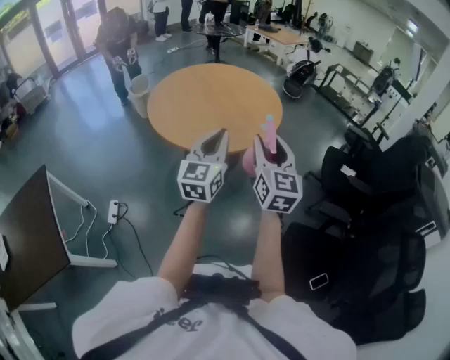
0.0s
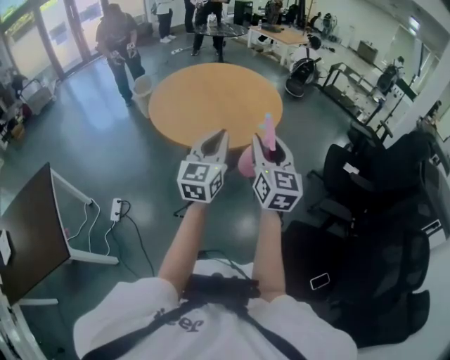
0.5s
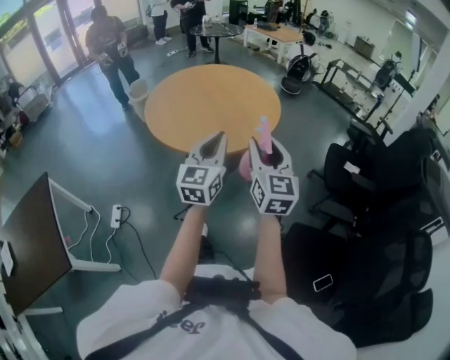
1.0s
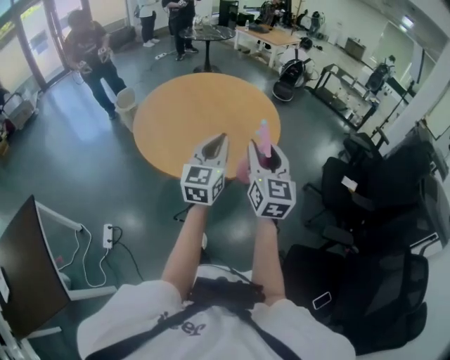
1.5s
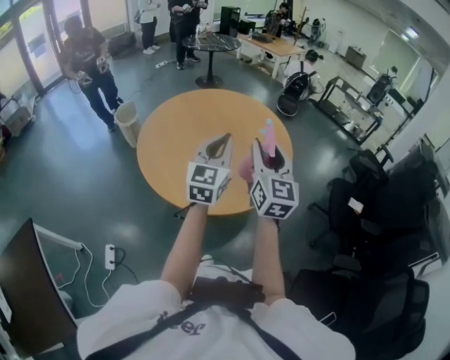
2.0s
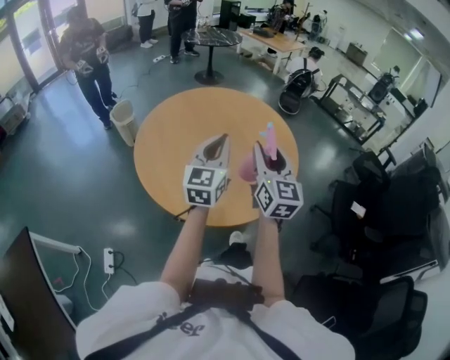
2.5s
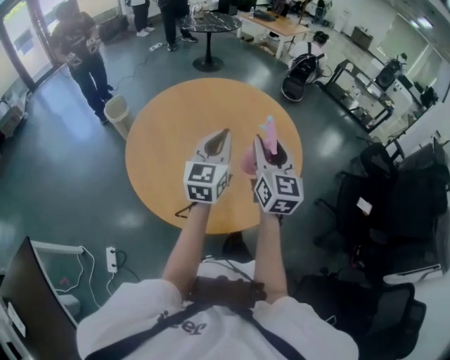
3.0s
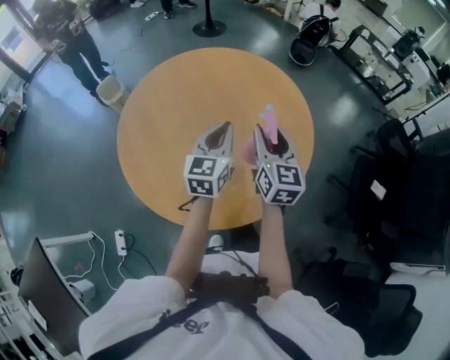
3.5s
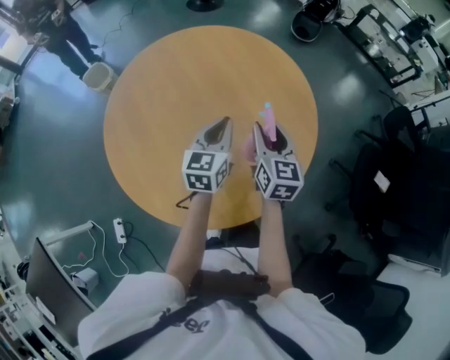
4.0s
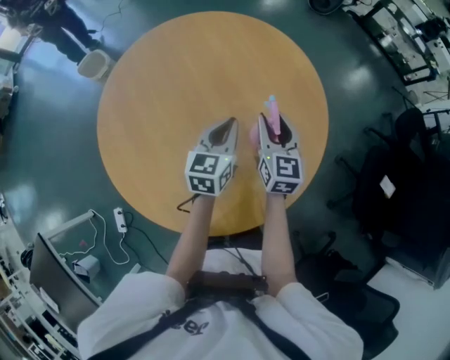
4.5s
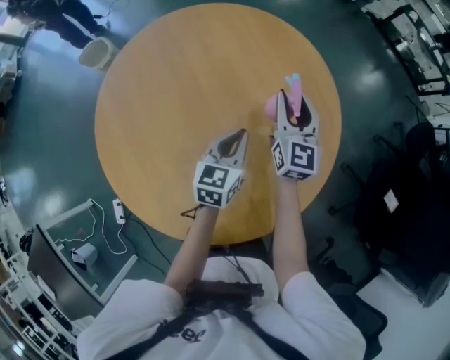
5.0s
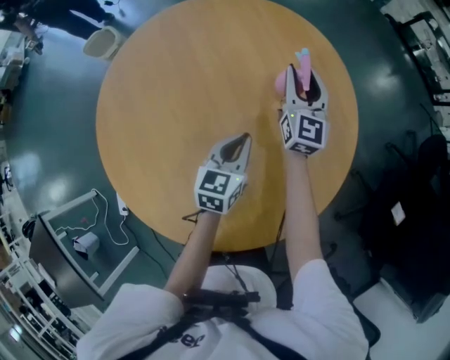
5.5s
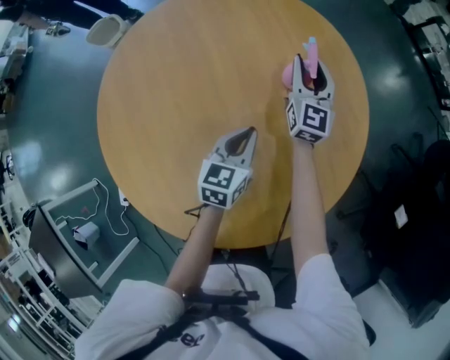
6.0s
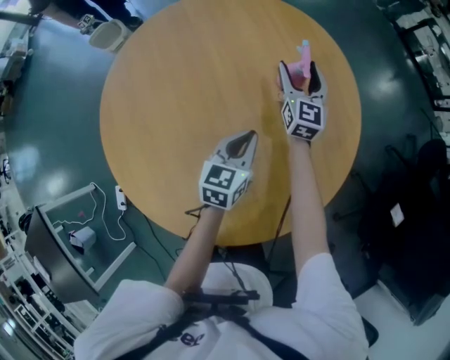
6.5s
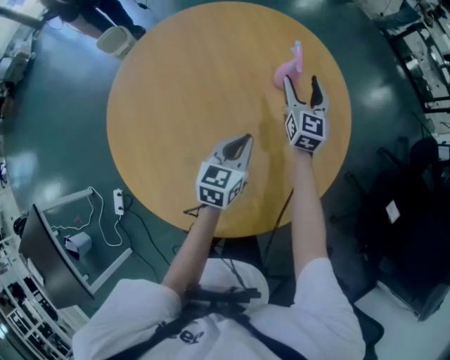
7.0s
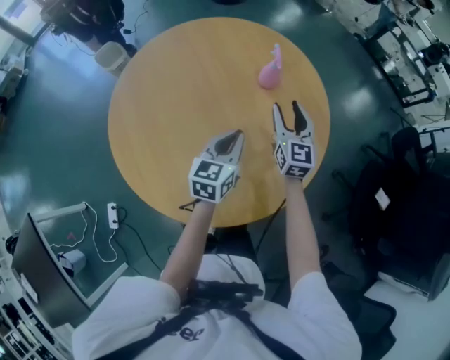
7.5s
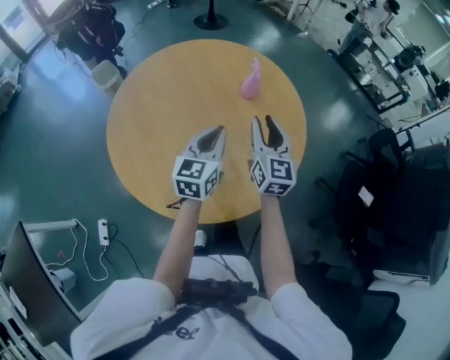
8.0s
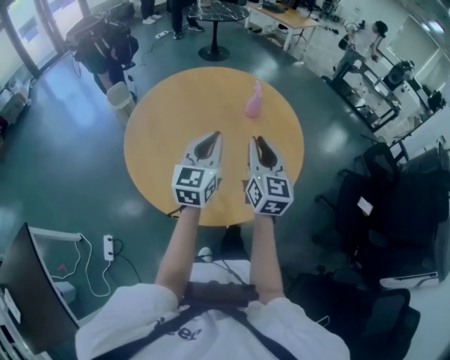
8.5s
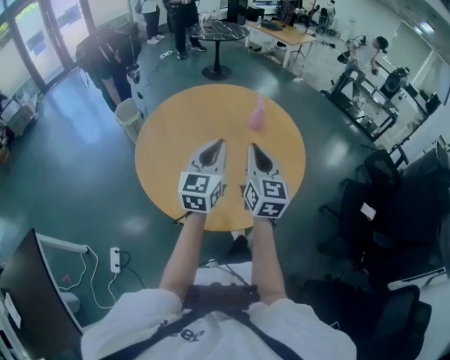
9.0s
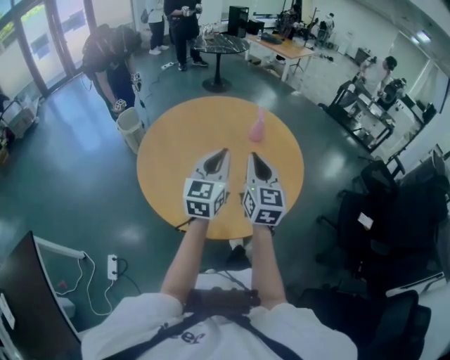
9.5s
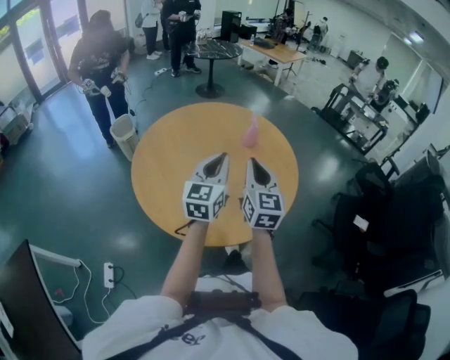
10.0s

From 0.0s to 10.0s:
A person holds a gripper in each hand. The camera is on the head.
From 0.0s to 2.0s: Both grippers travel together forward, approximately 30 cm.
From 2.0s to 4.0s: The two grippers go approximately 35 cm forward and downward. The right gripper changes its angle by roughly 30 degrees, while the left gripper rotates some 30 degrees.
From 4.0s to 6.0s: The left gripper moves downward and forward, approximately 15 cm; the right gripper heads forward, covering approximately 30 cm.
From 6.0s to 8.0s: The left gripper is displaced upward and backward by roughly 25 cm, and rotates some 20 degrees. The right gripper moves backward and upward, about 35 cm, and opens and closes again.
From 8.0s to 10.0s: The right gripper goes approximately 20 cm backward, upward and to the left, and closes up; the left gripper is displaced upward and backward by roughly 15 cm.

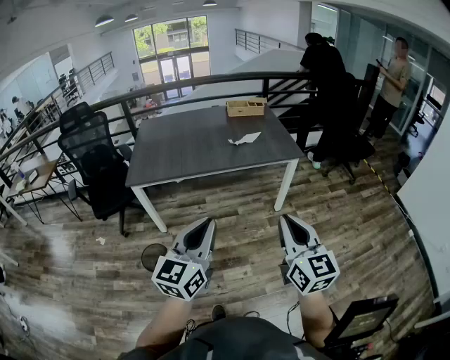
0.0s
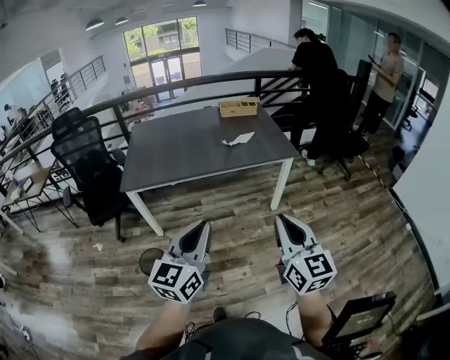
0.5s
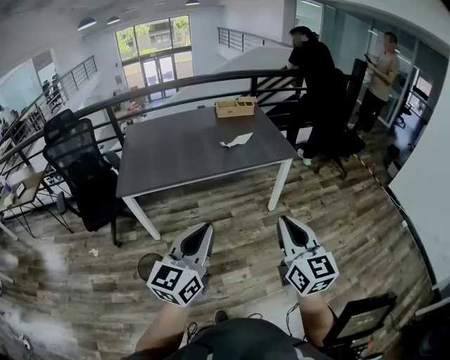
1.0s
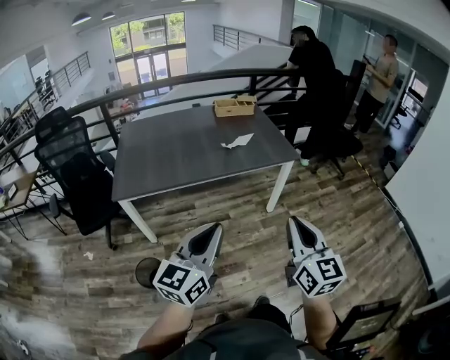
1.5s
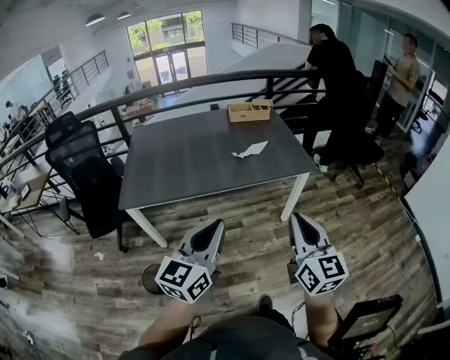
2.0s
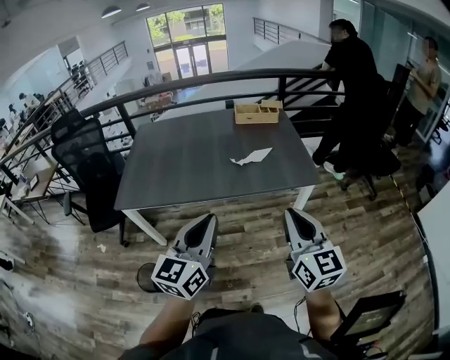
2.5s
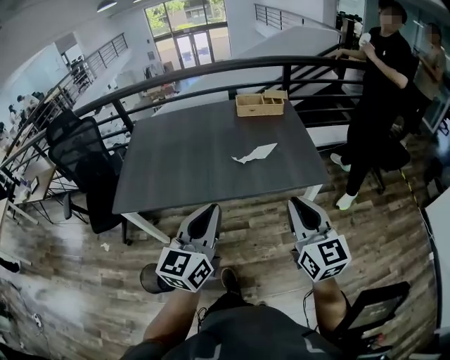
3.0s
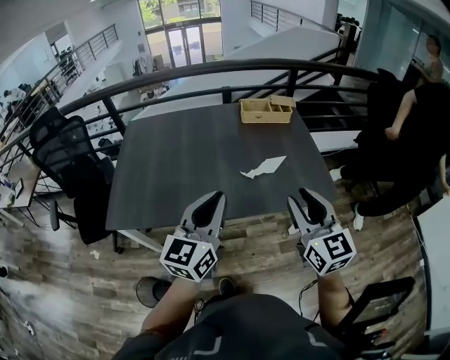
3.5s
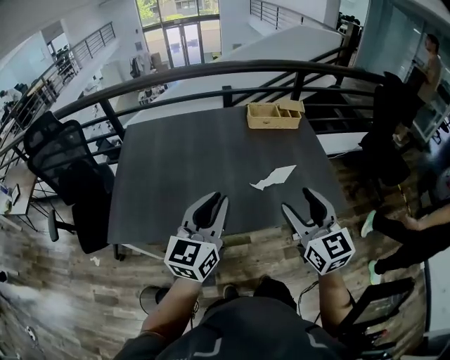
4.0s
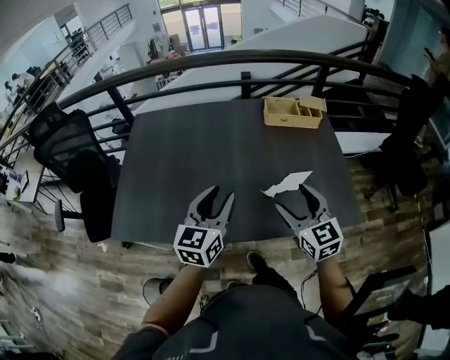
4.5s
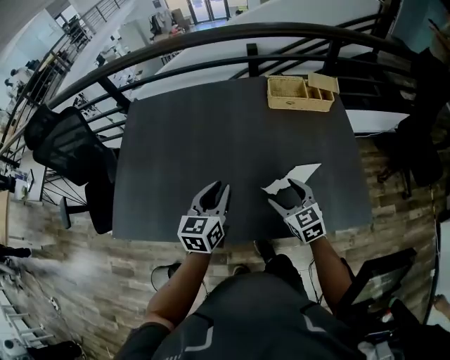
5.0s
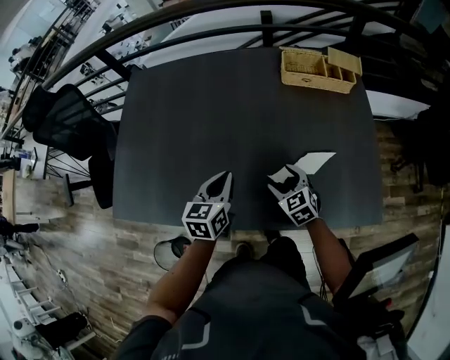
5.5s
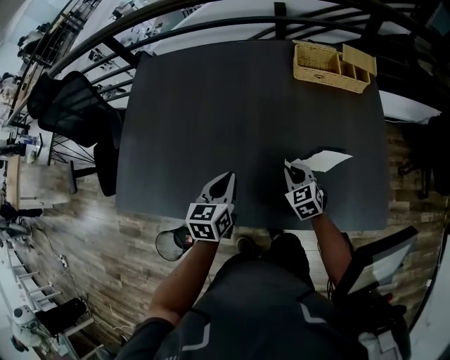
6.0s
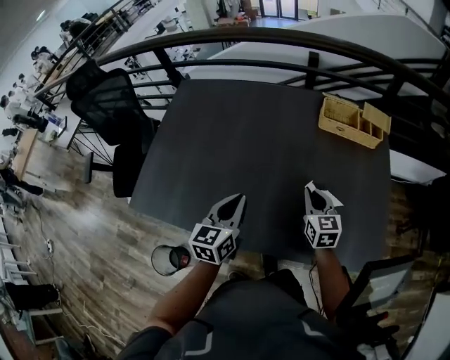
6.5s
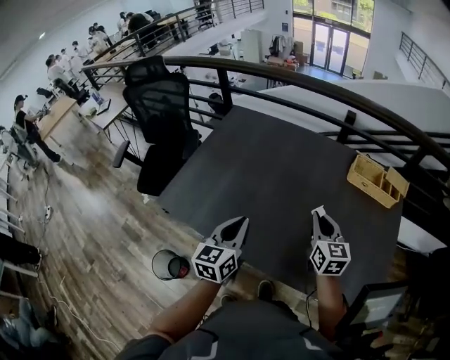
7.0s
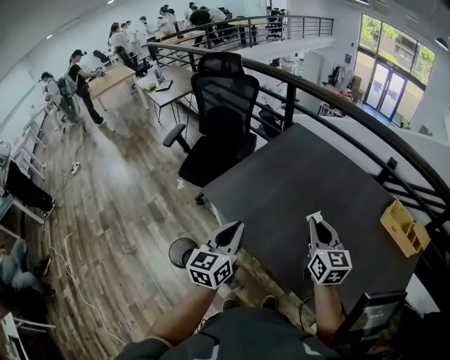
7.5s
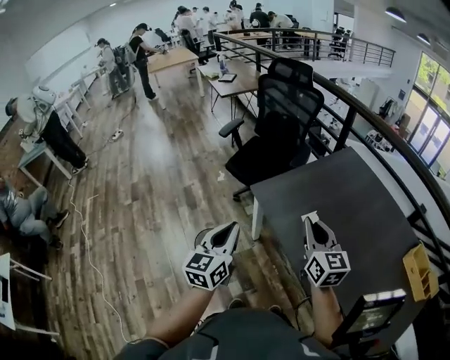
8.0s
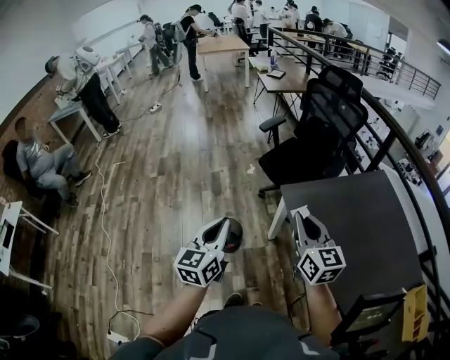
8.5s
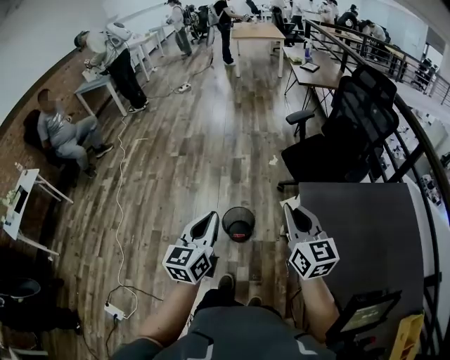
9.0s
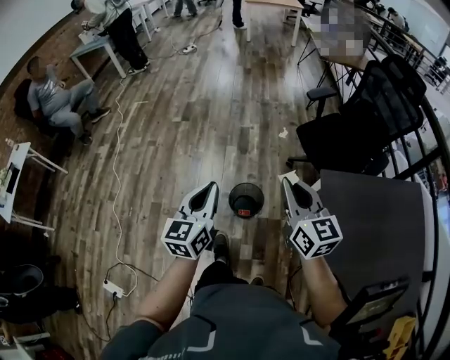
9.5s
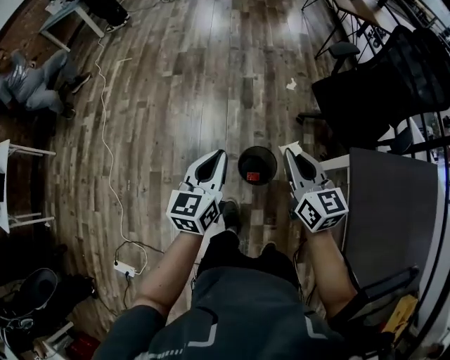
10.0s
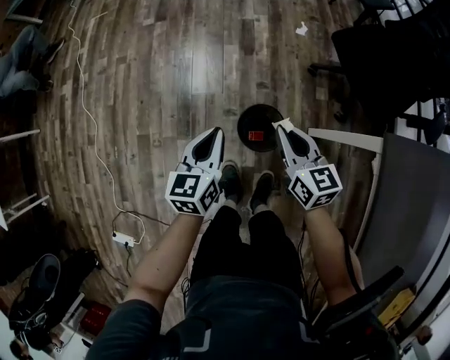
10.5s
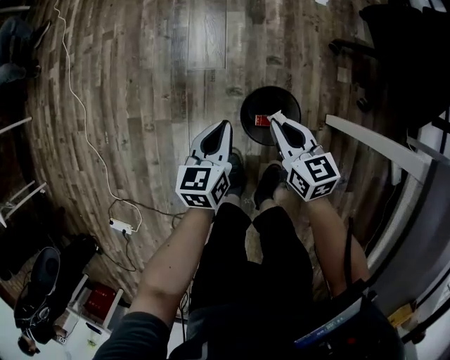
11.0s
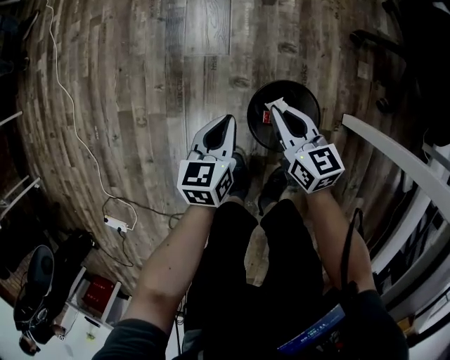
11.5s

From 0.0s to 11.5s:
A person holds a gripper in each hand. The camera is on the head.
From 0.0s to 2.0s: Both grippers travel together forward, roughly 15 cm.
From 2.0s to 4.0s: Both grippers move forward, approximately 40 cm. The right gripper opens its fingers.
From 4.0s to 6.0s: The grippers both shift downward and forward by about 35 cm. The left gripper points its fingers roughly 30 degrees further downward, and opens, then closes once more; the right gripper angles its fingers downward, by roughly 40 degrees, and closes its fingers.
From 6.0s to 7.5s: The left gripper ends up roughly 35 cm from where it was, and turns by approximately 40 degrees, while the right gripper heads upward, covering some 30 cm, and tilts its fingers roughly 30 degrees upward.
From 7.5s to 9.5s: The pair of grippers is taken some 50 cm. The left gripper changes its angle by about 50 degrees, while the right gripper changes its angle by about 60 degrees.
From 9.5s to 11.5s: The grippers both shift downward by approximately 60 cm. The left gripper tilts its fingers about 30 degrees downward, while the right gripper turns by some 30 degrees.

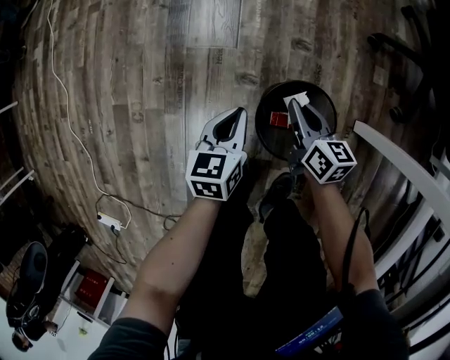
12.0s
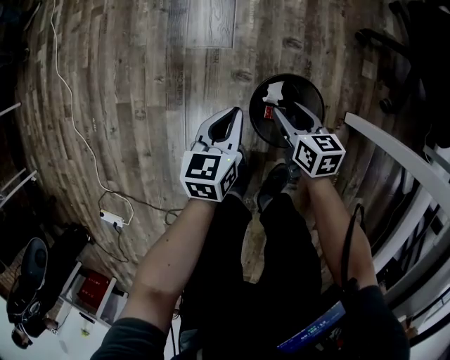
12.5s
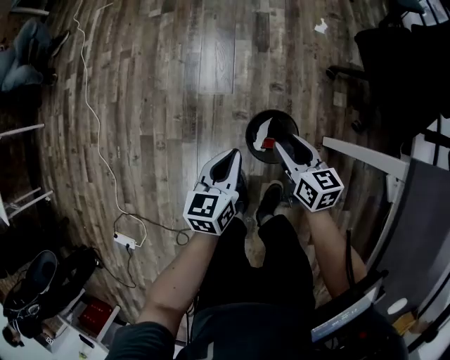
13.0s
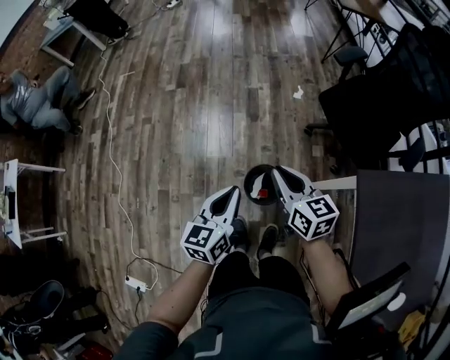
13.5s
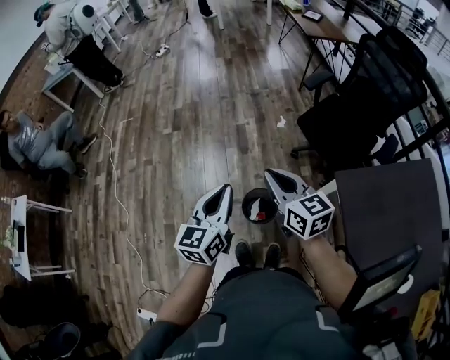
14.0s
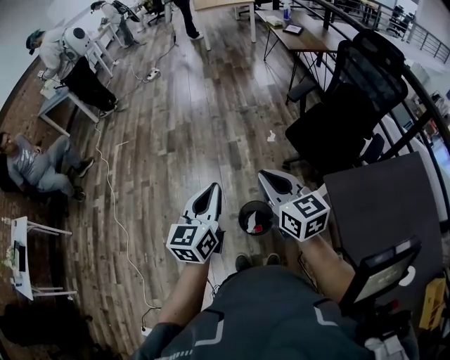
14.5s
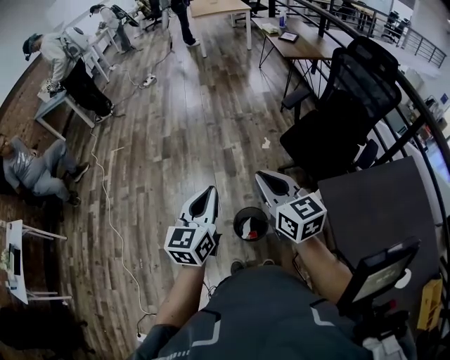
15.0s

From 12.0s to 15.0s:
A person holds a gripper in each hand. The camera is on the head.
From 12.0s to 13.5s: The two grippers go approximately 50 cm upward. The right gripper opens and closes again. Meanwhile the left gripper swivels roughly 20 degrees.
From 13.5s to 15.0s: The two grippers go some 20 cm upward.

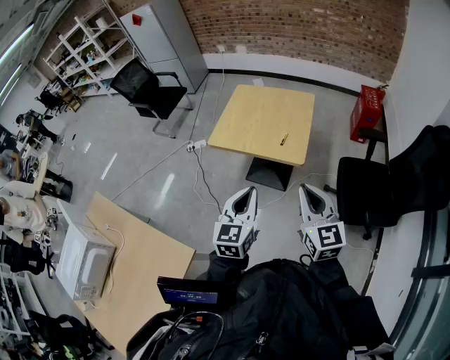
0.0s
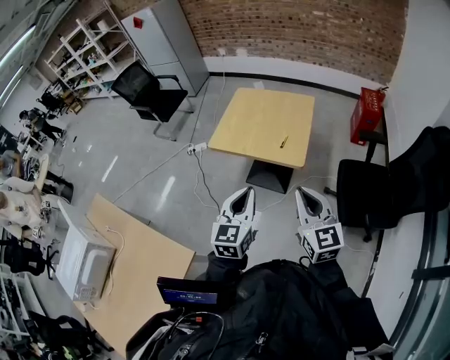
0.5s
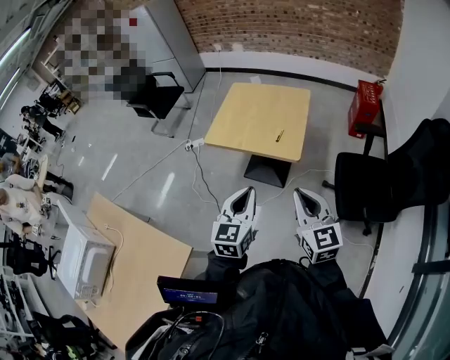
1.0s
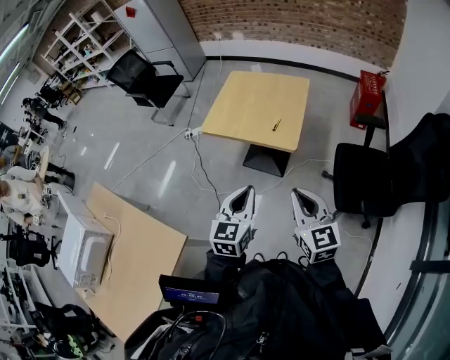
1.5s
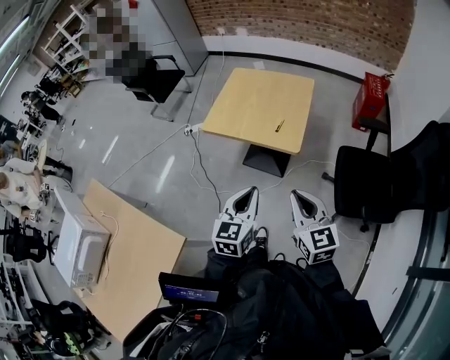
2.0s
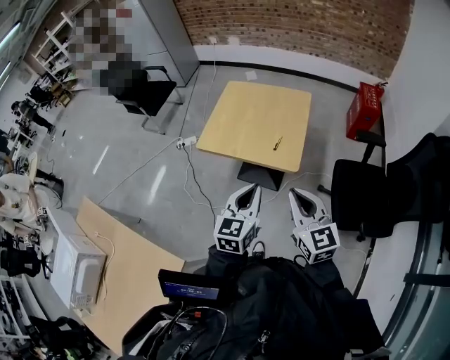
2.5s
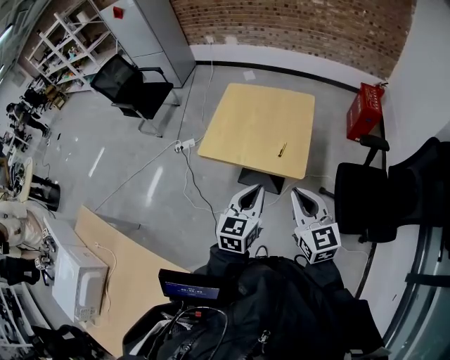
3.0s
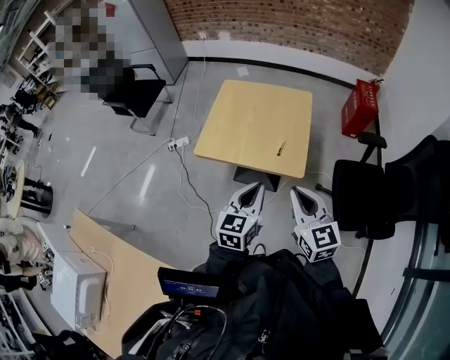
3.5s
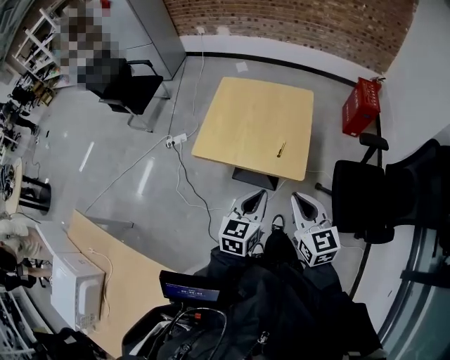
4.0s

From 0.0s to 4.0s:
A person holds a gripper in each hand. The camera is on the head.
From 0.0s to 2.0s: The right gripper travels downward by about 5 cm. The left gripper shifts by some 5 cm.
From 2.0s to 4.0s: The two grippers go some 20 cm forward.
